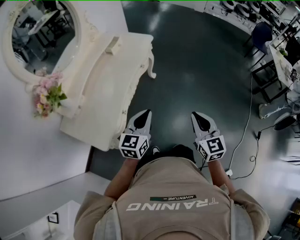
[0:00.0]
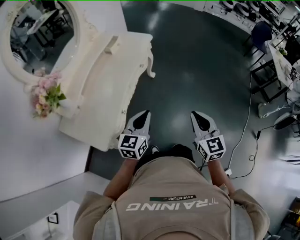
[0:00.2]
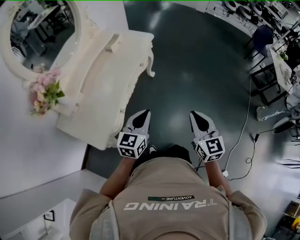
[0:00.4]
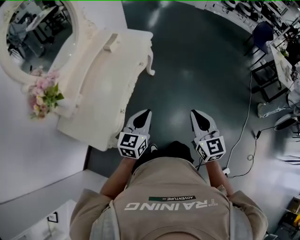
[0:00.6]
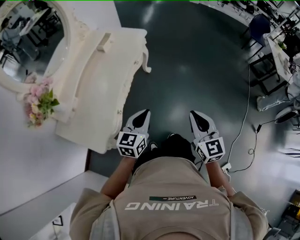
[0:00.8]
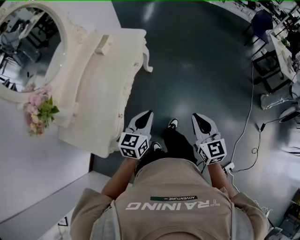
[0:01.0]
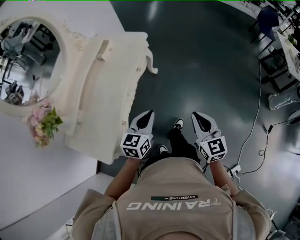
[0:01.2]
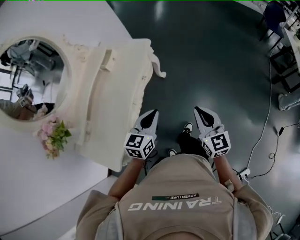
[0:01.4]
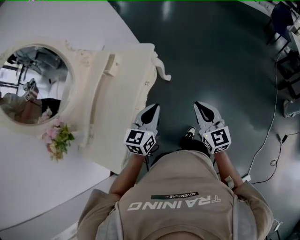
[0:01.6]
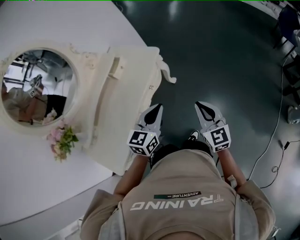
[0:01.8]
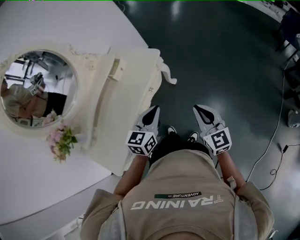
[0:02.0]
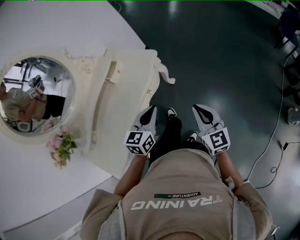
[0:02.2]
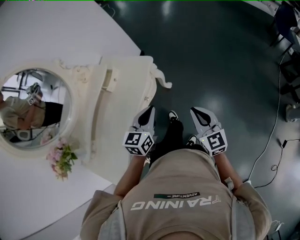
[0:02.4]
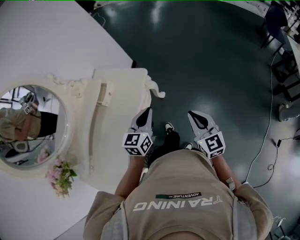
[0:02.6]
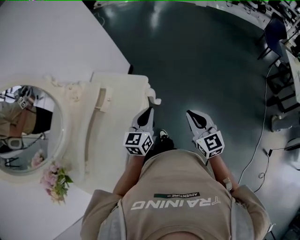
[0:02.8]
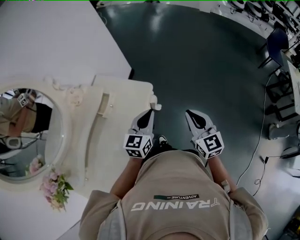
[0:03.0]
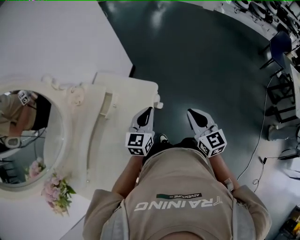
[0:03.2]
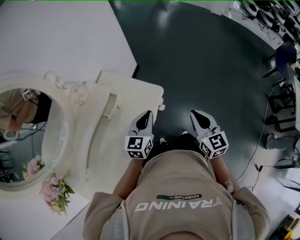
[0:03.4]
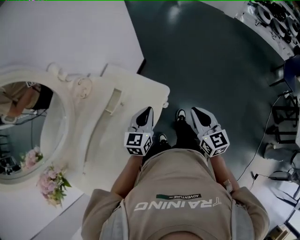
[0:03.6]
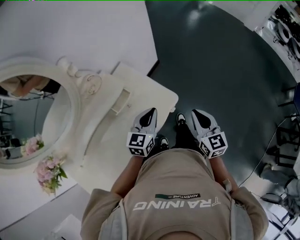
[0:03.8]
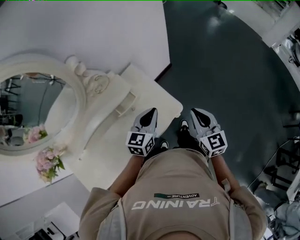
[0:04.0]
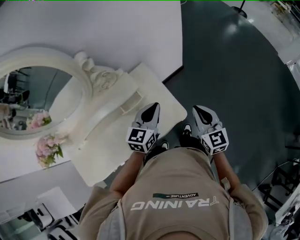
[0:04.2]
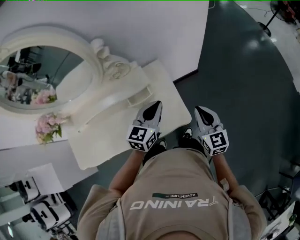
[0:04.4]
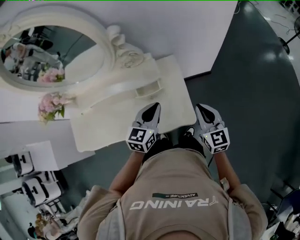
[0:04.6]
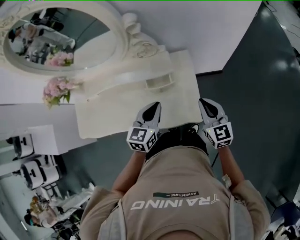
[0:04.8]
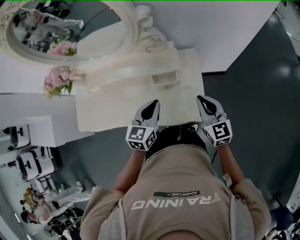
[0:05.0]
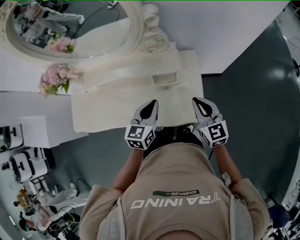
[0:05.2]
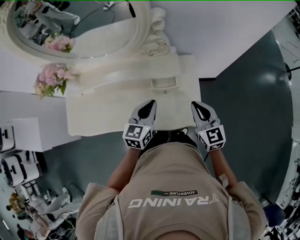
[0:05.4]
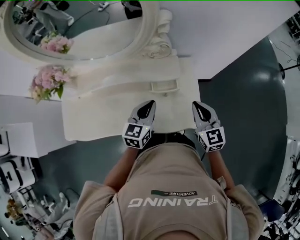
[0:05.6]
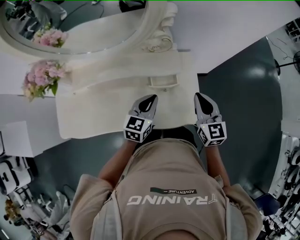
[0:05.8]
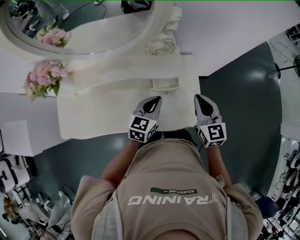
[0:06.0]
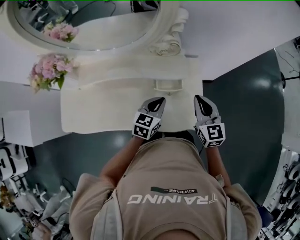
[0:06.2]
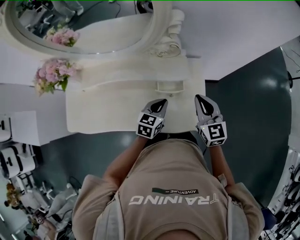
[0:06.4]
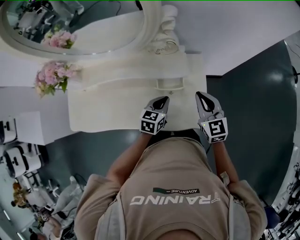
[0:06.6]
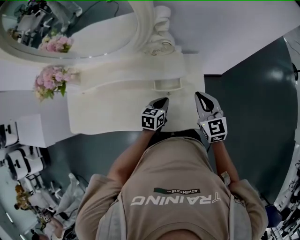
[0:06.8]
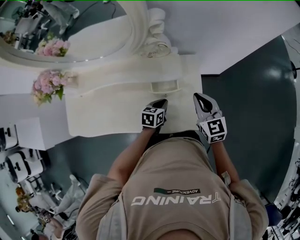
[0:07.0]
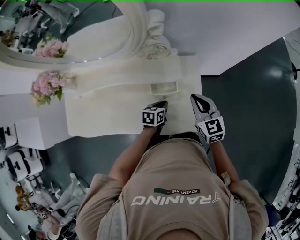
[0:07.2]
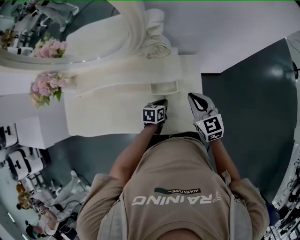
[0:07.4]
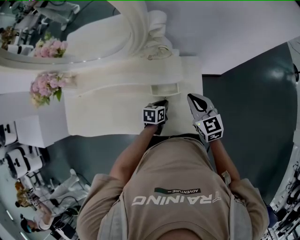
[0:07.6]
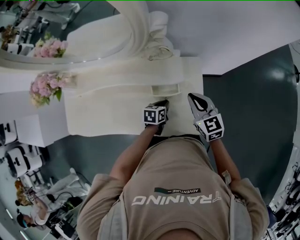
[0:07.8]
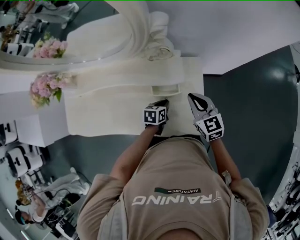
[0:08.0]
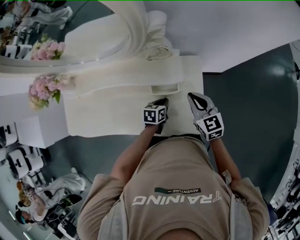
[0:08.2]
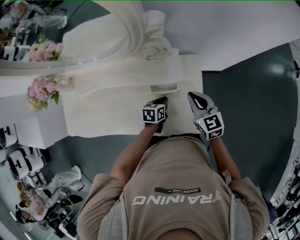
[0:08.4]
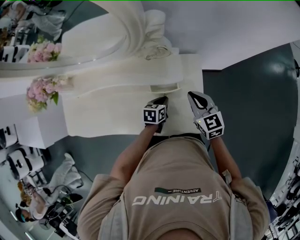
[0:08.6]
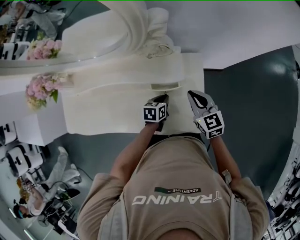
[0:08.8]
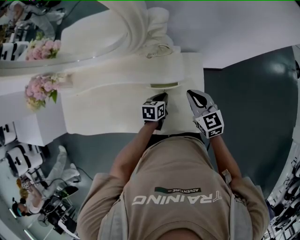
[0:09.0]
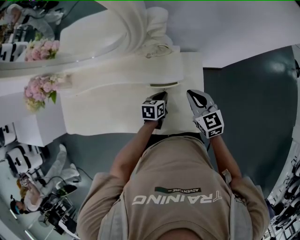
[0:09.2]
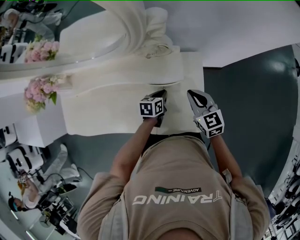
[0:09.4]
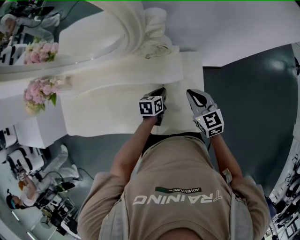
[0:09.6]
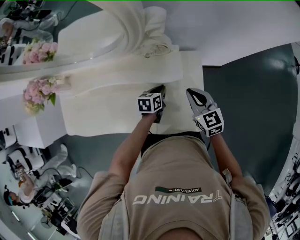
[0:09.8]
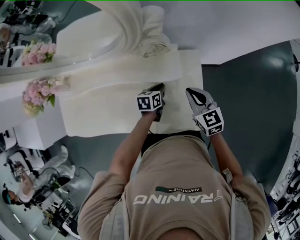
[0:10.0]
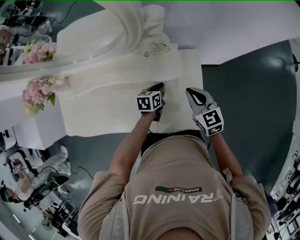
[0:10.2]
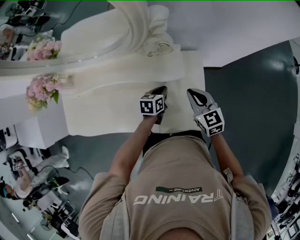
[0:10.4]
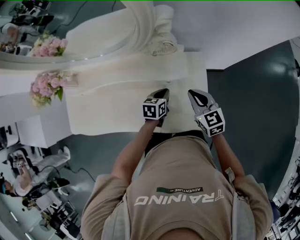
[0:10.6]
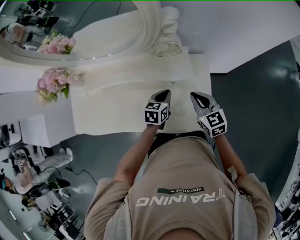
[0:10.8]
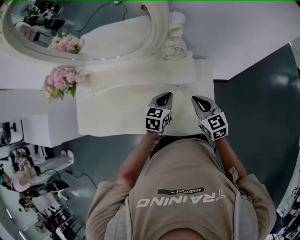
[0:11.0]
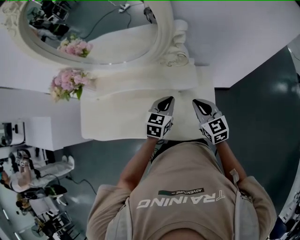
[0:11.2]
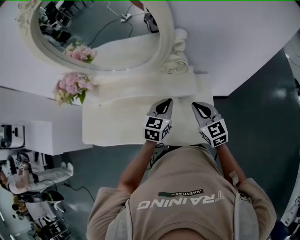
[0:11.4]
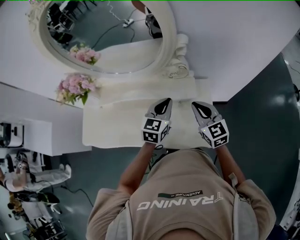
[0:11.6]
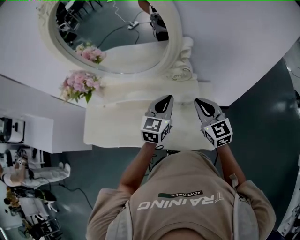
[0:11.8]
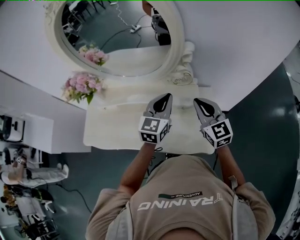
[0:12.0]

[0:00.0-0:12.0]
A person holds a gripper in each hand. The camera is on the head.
0:00.0 to 0:01.6: Both grippers move forward, roughly 25 cm.
0:01.6 to 0:03.0: The grippers both shift forward by about 25 cm.
0:03.0 to 0:04.4: The left gripper changes place by about 20 cm, and rotates about 40 degrees. Meanwhile the right gripper ends up roughly 30 cm from where it was, and turns by about 40 degrees.
0:04.4 to 0:06.0: The right gripper is displaced to the left and forward by roughly 20 cm; the left gripper goes some 15 cm to the left.
0:06.0 to 0:07.6: The left gripper shifts some 20 cm downward, and changes its angle by some 40 degrees. The right gripper travels downward and forward by some 10 cm.
0:07.6 to 0:09.0: The grippers make only small movements.
0:09.0 to 0:10.4: The grippers move only a little.
0:10.4 to 0:12.0: The right gripper is displaced upward by some 15 cm, and changes its angle by roughly 20 degrees. Meanwhile the left gripper heads upward, covering approximately 30 cm, and tips its fingers upward by roughly 30 degrees.

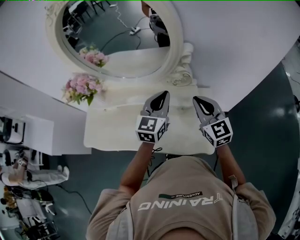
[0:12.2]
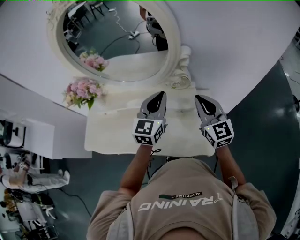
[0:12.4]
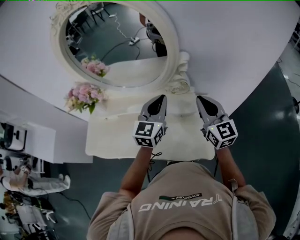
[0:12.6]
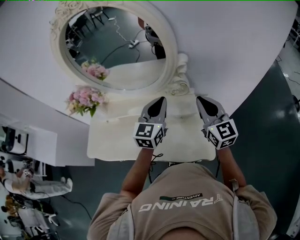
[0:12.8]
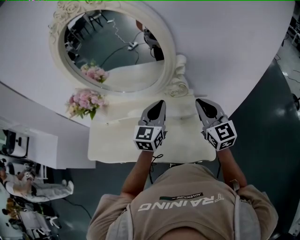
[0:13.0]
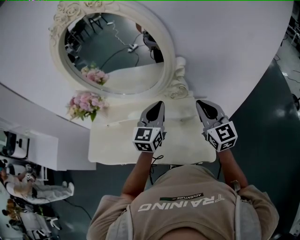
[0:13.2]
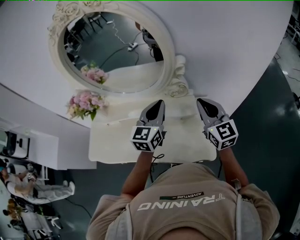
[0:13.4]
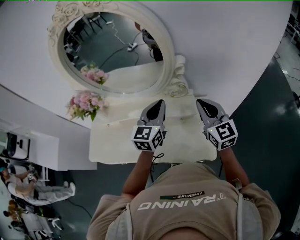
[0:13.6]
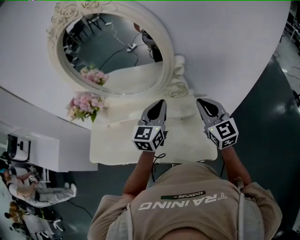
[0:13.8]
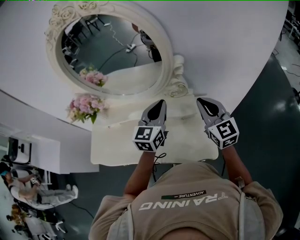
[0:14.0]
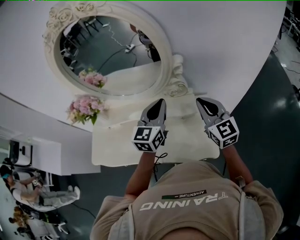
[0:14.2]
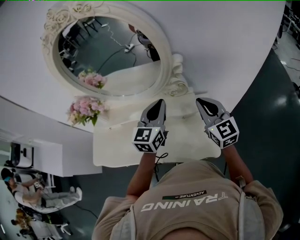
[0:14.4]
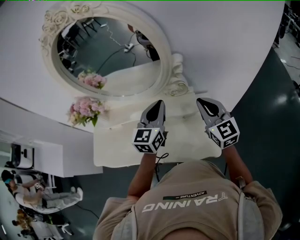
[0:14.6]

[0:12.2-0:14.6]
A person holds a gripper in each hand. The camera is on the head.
0:12.2 to 0:13.4: The right gripper moves about 5 cm.
0:13.4 to 0:14.6: Both grippers stay put.

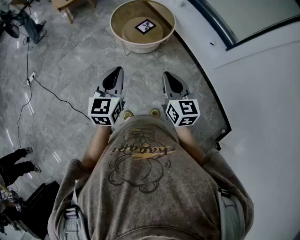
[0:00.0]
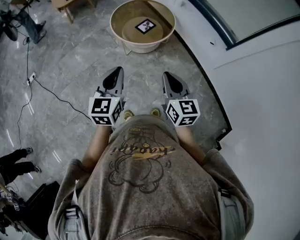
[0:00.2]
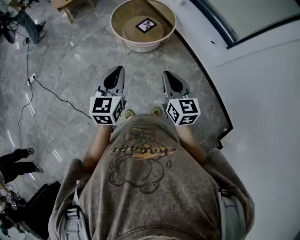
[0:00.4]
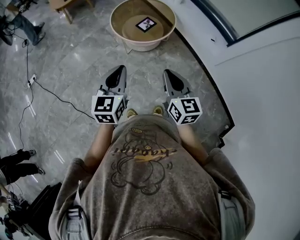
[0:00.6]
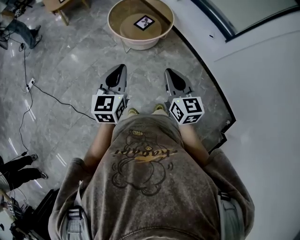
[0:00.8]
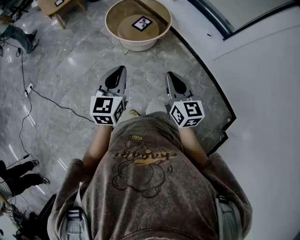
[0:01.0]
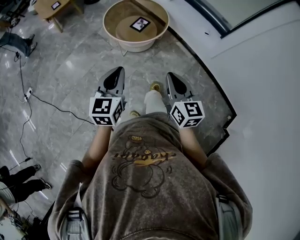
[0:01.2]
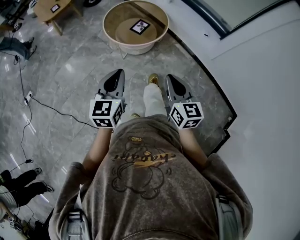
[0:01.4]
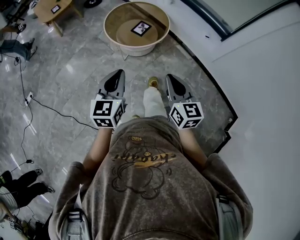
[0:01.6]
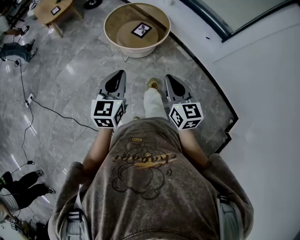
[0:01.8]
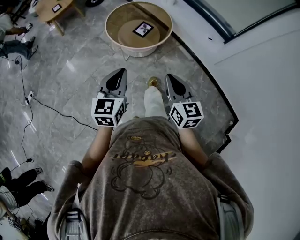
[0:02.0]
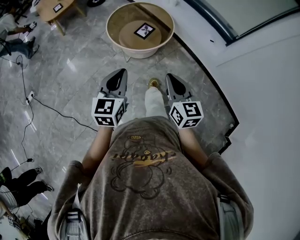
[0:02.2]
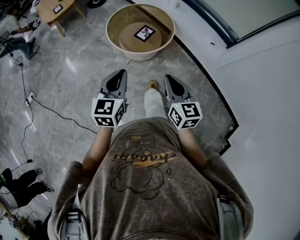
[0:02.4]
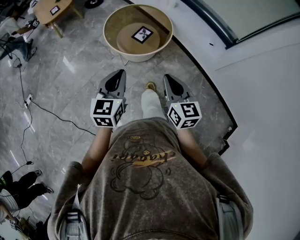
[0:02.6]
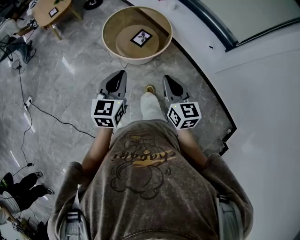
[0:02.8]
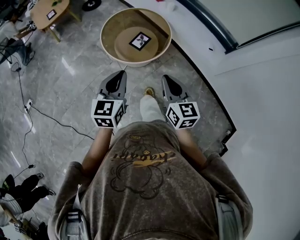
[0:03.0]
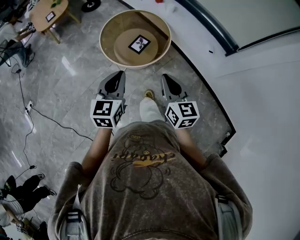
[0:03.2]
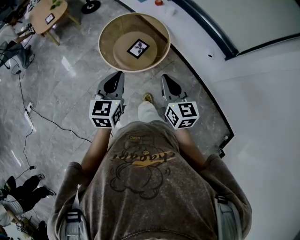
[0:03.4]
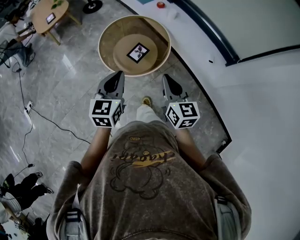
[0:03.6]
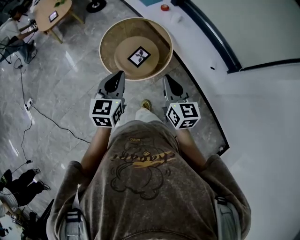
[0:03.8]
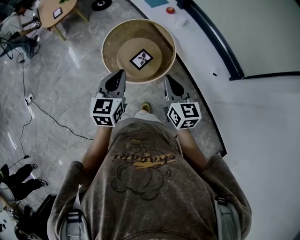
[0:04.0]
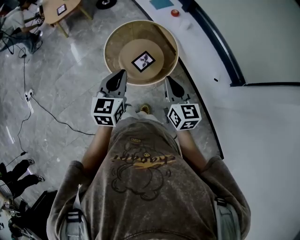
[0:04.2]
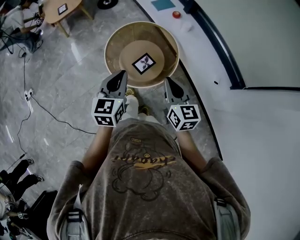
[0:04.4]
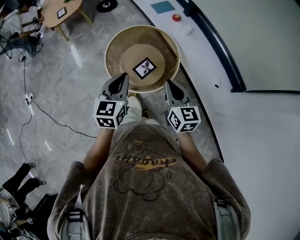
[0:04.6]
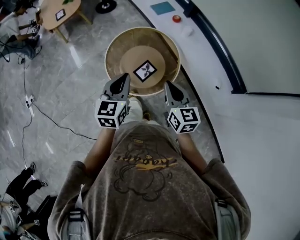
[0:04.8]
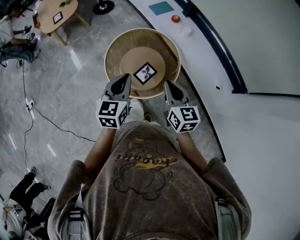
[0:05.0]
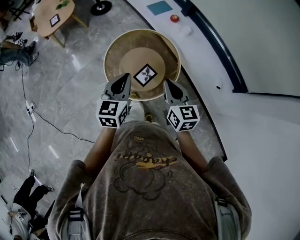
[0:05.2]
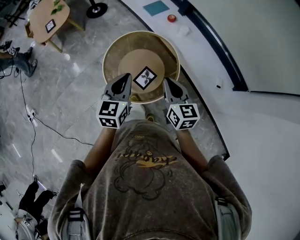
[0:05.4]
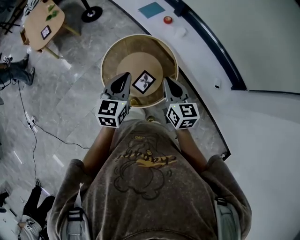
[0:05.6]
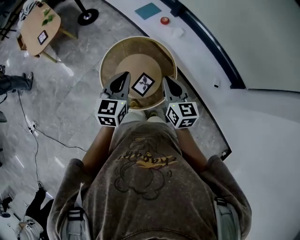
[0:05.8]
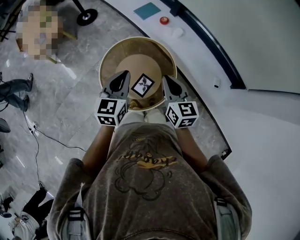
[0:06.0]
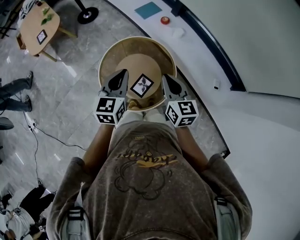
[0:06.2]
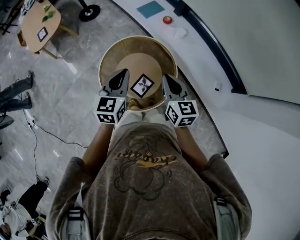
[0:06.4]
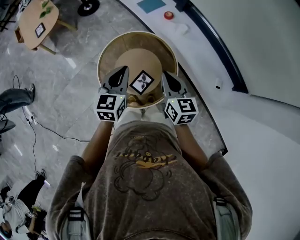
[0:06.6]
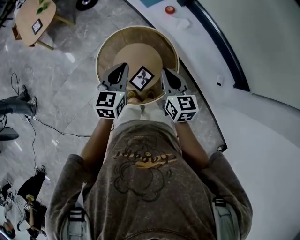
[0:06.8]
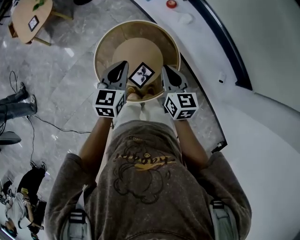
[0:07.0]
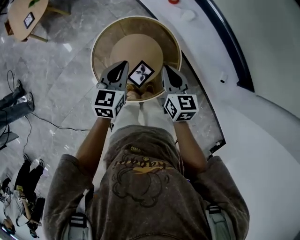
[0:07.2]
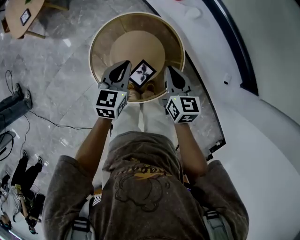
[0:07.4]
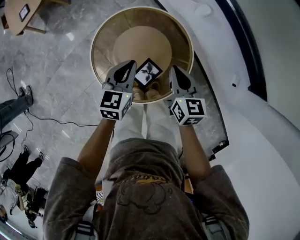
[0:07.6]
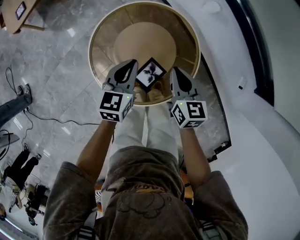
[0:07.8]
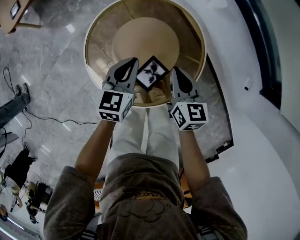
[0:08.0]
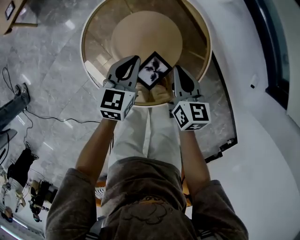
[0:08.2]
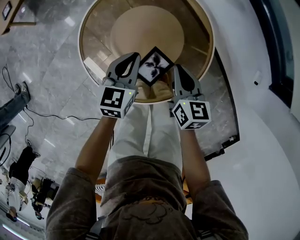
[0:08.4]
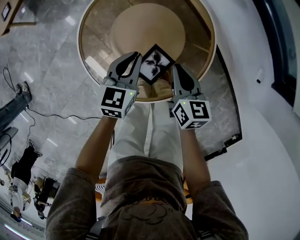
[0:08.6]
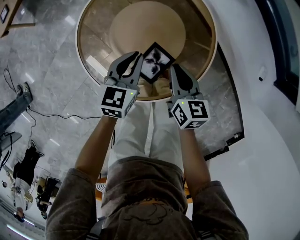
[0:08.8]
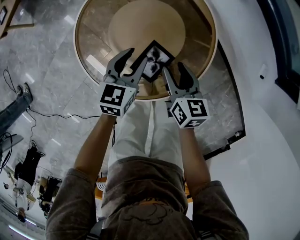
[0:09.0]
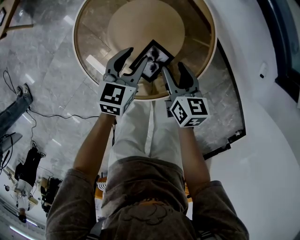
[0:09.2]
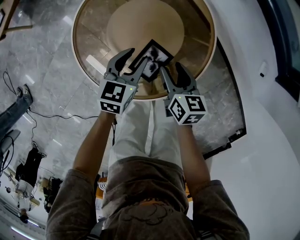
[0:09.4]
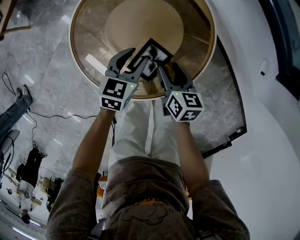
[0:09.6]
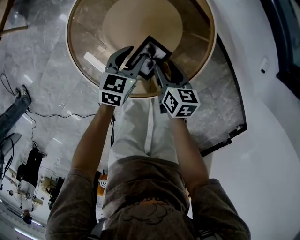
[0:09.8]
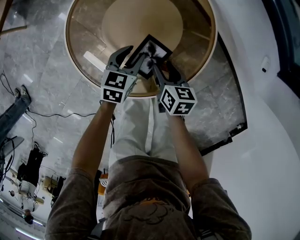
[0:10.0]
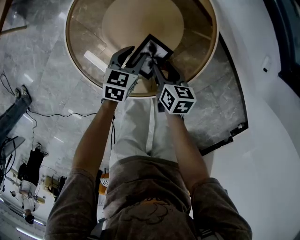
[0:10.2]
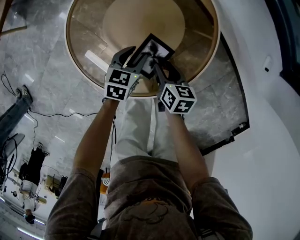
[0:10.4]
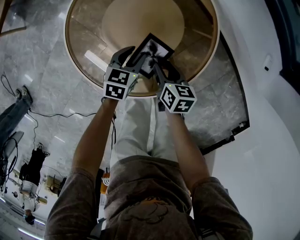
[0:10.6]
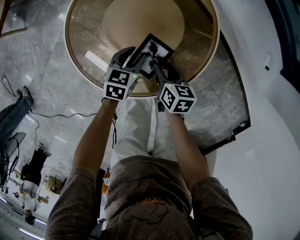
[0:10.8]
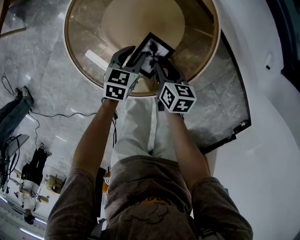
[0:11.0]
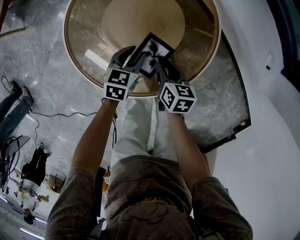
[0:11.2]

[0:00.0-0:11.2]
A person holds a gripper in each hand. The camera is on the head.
0:00.0 to 0:01.6: Both grippers travel together to the left, some 5 cm.
0:01.6 to 0:03.2: Both grippers move forward, some 20 cm.
0:03.2 to 0:04.8: Both grippers travel together forward, approximately 25 cm.
0:04.8 to 0:06.4: Both grippers travel together forward, approximately 20 cm.
0:06.4 to 0:08.0: The two grippers go about 30 cm downward.
0:08.0 to 0:09.6: The right gripper shifts about 15 cm downward and backward, and opens its fingers. Meanwhile the left gripper moves downward, approximately 15 cm, and opens.
0:09.6 to 0:11.2: Both grippers move downward, roughly 5 cm. The right gripper closes up.
